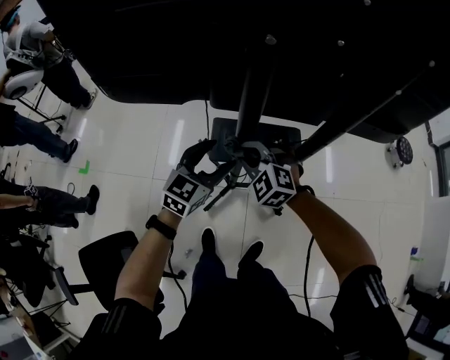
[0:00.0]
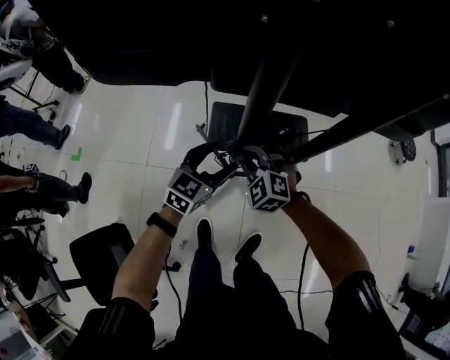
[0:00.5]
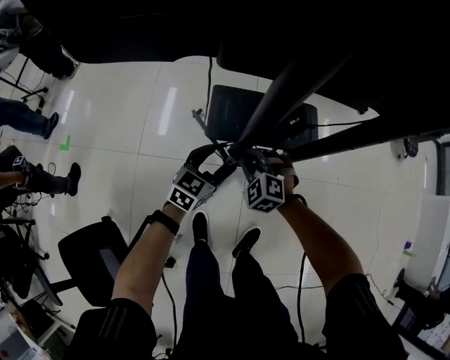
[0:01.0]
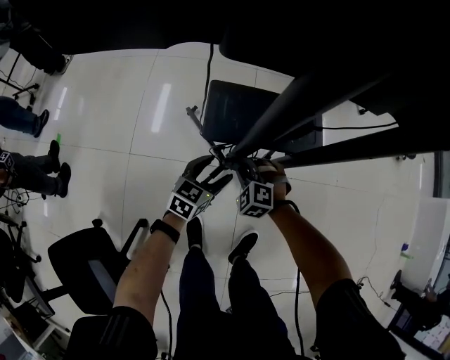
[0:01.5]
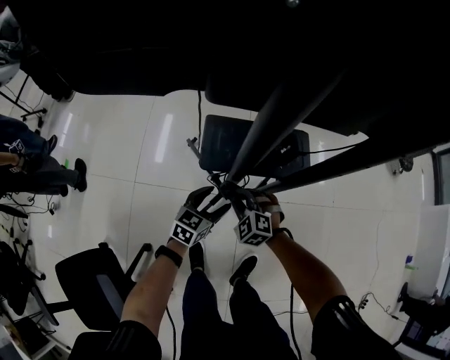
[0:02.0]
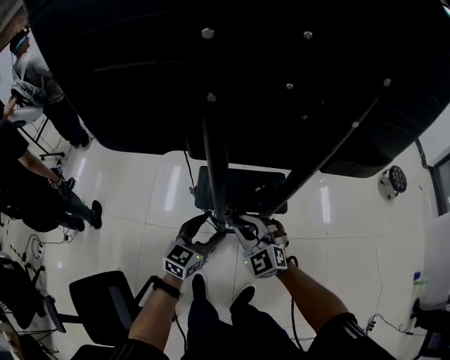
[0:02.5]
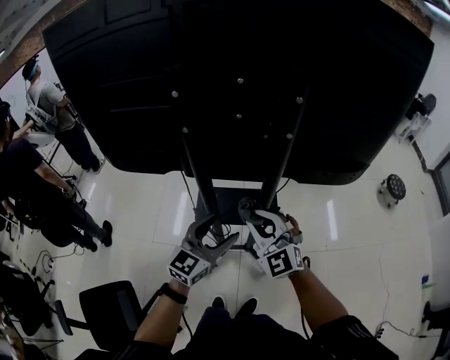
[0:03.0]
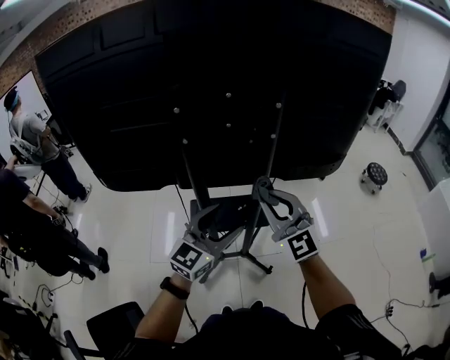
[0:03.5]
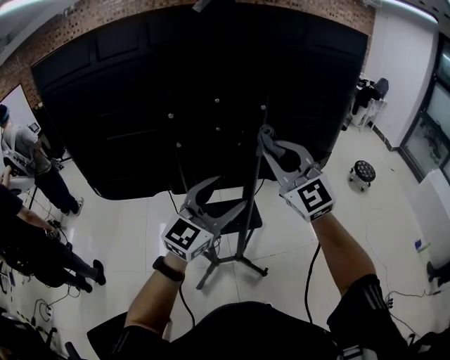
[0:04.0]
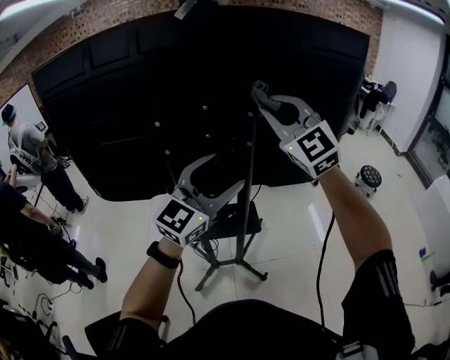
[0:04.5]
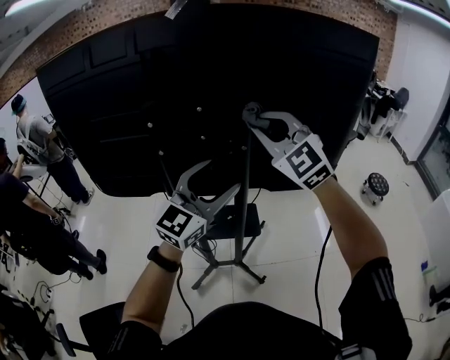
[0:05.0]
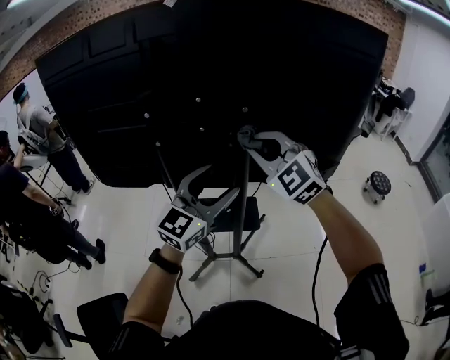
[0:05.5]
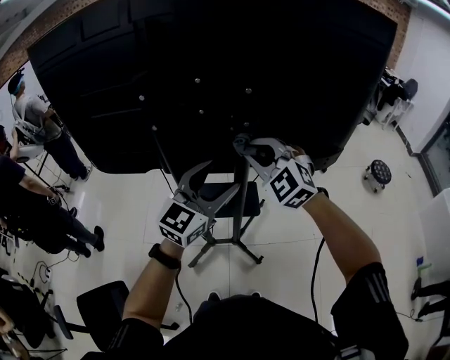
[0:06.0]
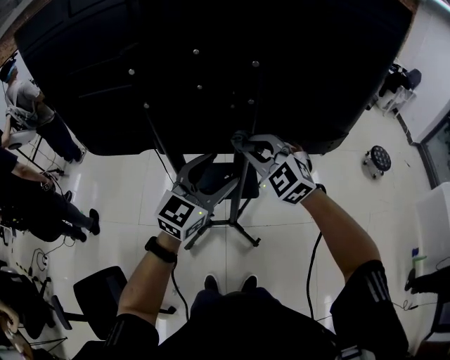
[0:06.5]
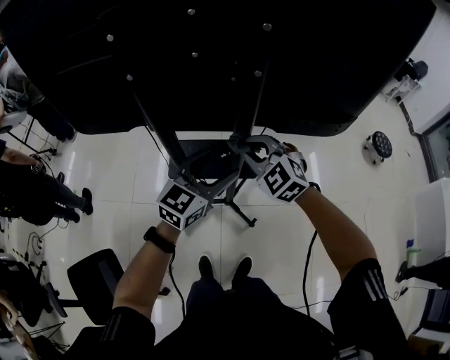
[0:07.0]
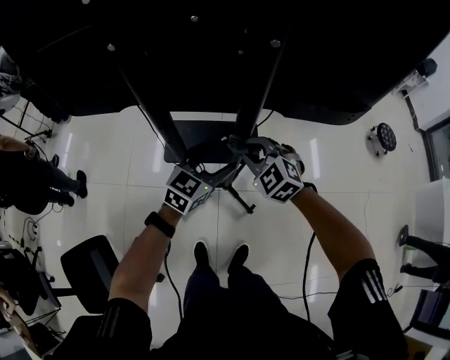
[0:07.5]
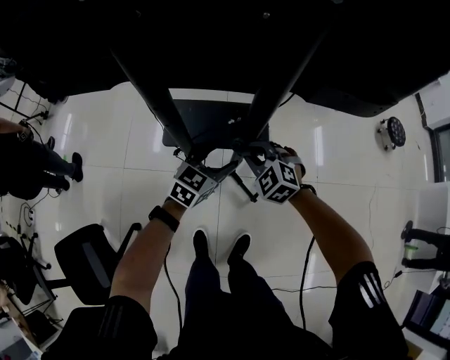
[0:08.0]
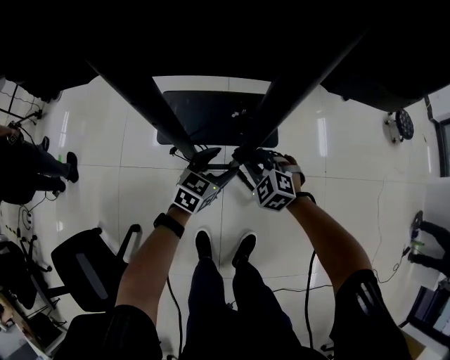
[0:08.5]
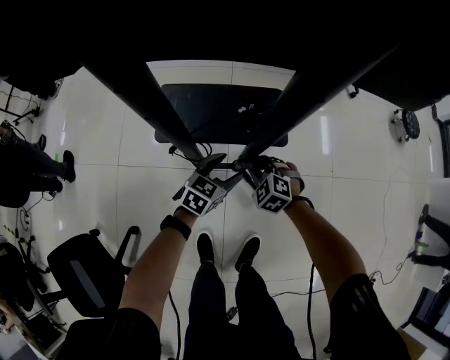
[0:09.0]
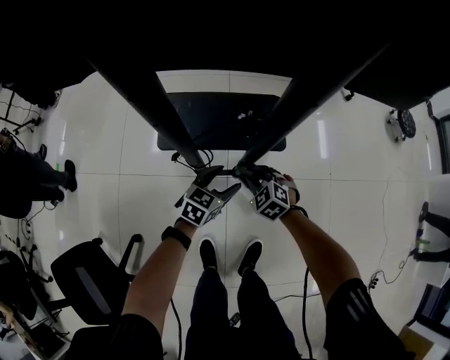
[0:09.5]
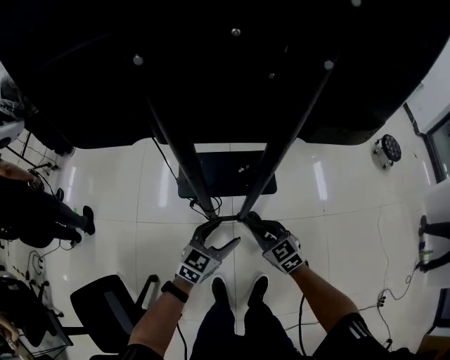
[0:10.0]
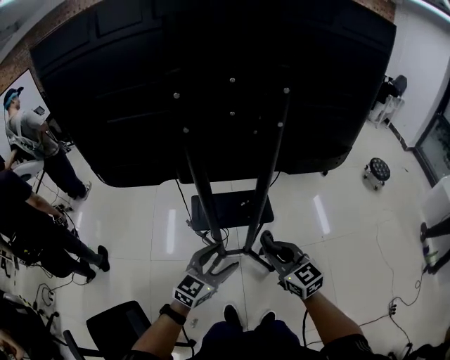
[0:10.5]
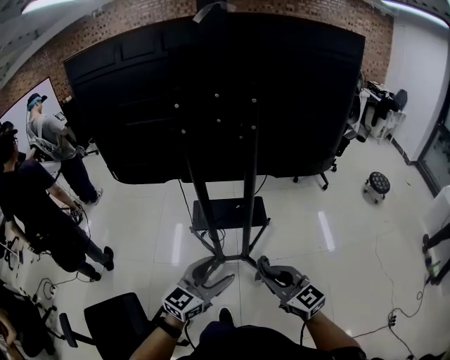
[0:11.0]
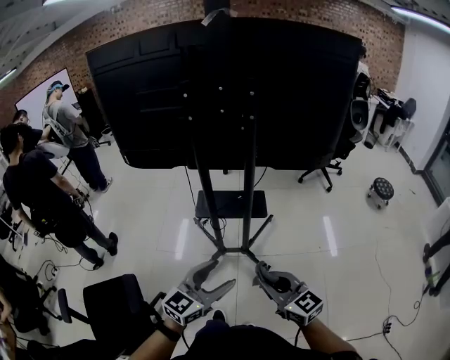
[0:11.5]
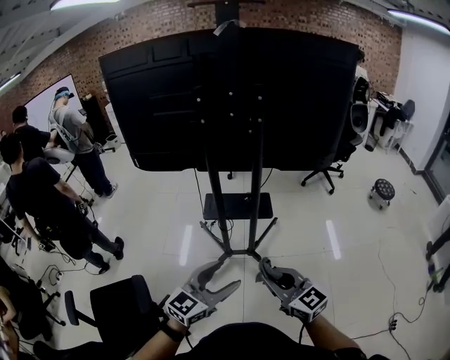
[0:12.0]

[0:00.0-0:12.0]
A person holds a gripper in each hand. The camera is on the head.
0:00.0 to 0:02.0: Both grippers move downward, approximately 30 cm. The left gripper swivels about 20 degrees.
0:02.0 to 0:04.0: Both grippers move upward, about 60 cm. The right gripper tilts its fingers approximately 50 degrees upward, while the left gripper tips its fingers upward by about 40 degrees.
0:04.0 to 0:06.0: The right gripper is displaced downward and forward by approximately 15 cm, and changes its angle by about 30 degrees, while the left gripper goes approximately 5 cm forward.
0:06.0 to 0:08.0: Both grippers travel together downward, some 40 cm. The left gripper changes its angle by approximately 30 degrees, while the right gripper changes its angle by about 30 degrees.
0:08.0 to 0:10.0: Both grippers move backward, about 10 cm. The right gripper reaches some 25 cm downward, then returns, and swivels roughly 30 degrees; the left gripper goes downward and returns, some 20 cm each way.
0:10.0 to 0:12.0: Both grippers move backward and upward, about 50 cm. The right gripper turns by about 30 degrees.

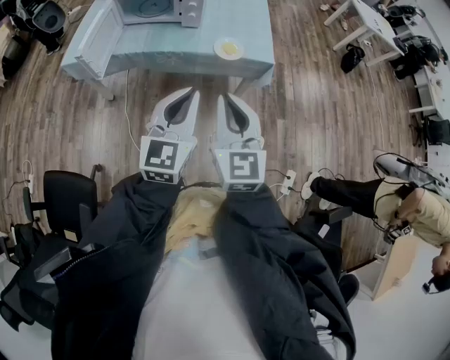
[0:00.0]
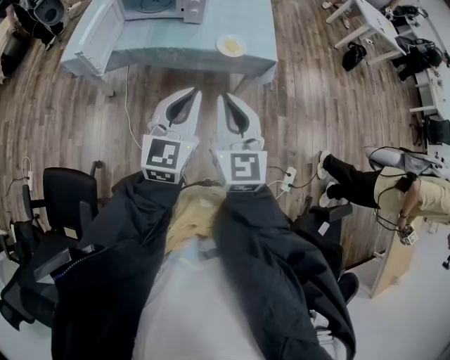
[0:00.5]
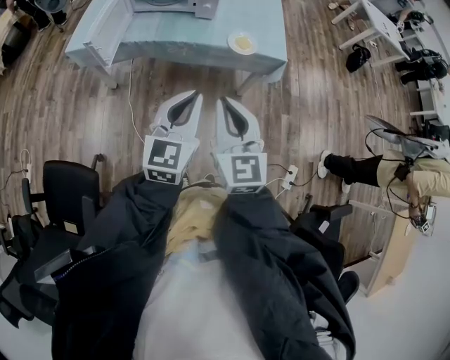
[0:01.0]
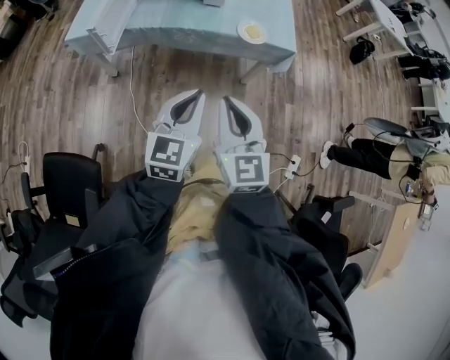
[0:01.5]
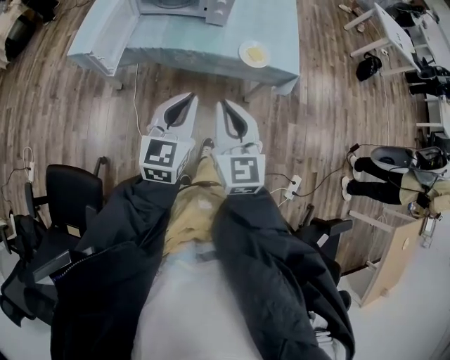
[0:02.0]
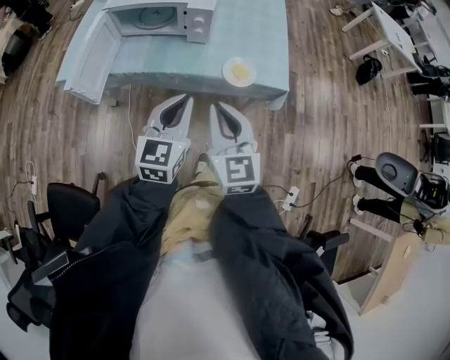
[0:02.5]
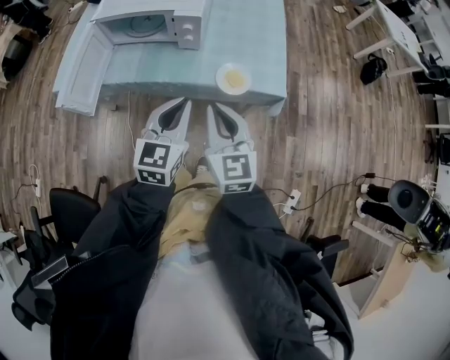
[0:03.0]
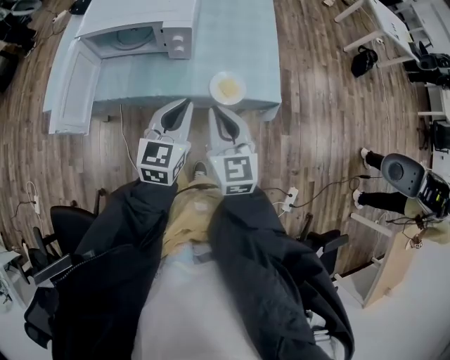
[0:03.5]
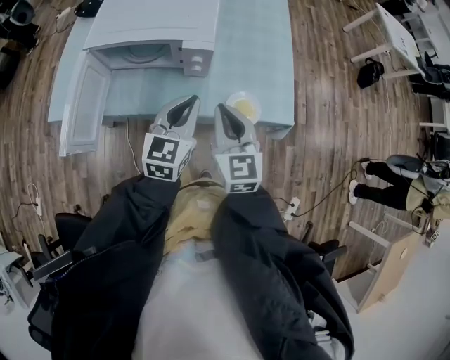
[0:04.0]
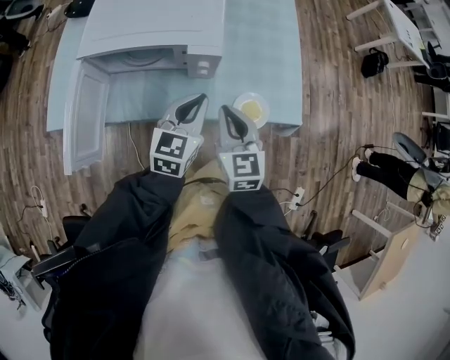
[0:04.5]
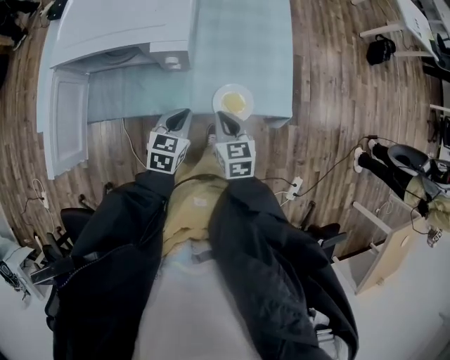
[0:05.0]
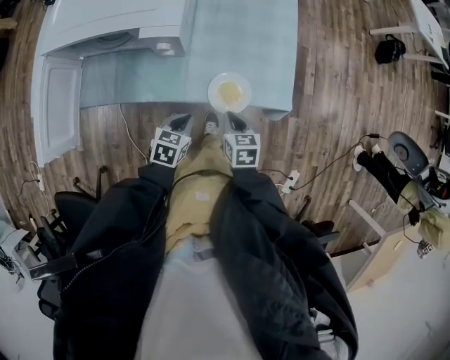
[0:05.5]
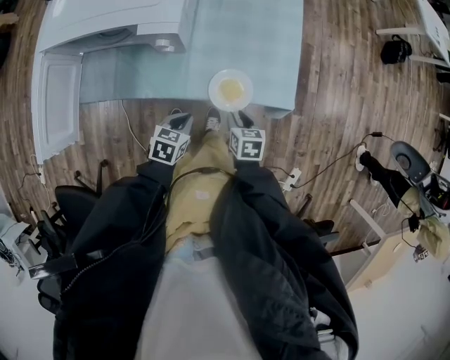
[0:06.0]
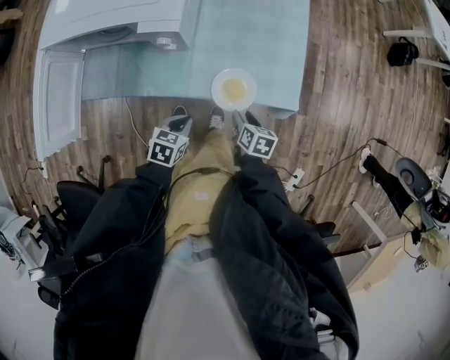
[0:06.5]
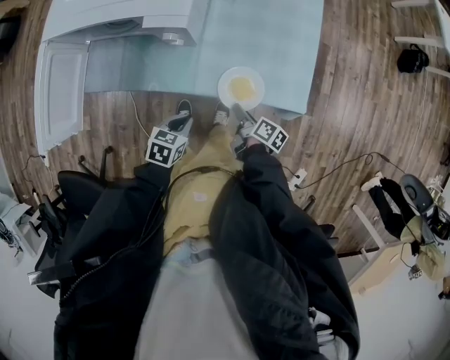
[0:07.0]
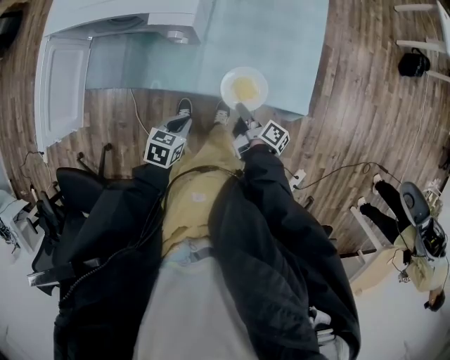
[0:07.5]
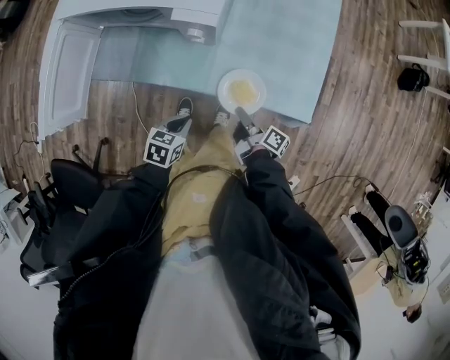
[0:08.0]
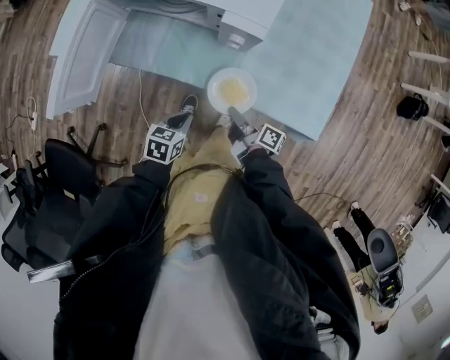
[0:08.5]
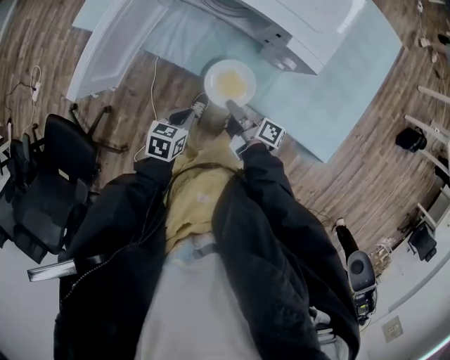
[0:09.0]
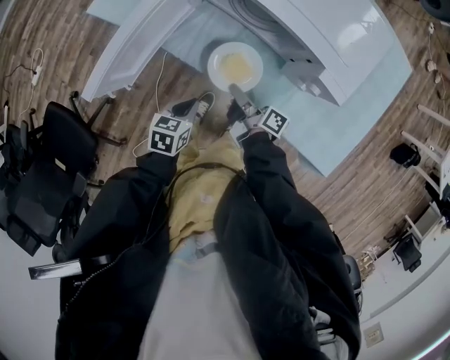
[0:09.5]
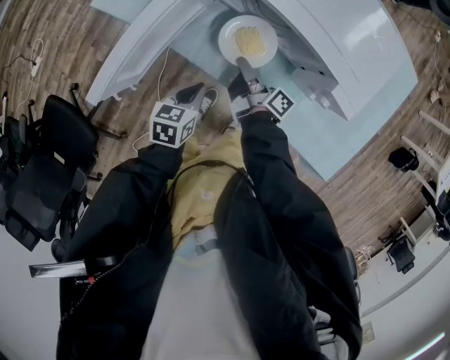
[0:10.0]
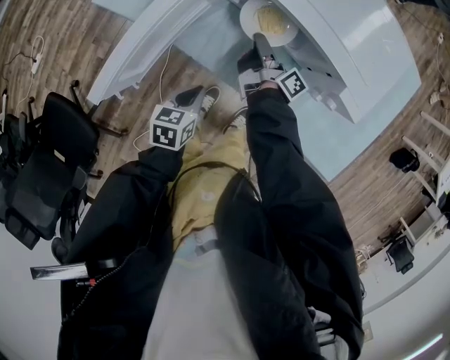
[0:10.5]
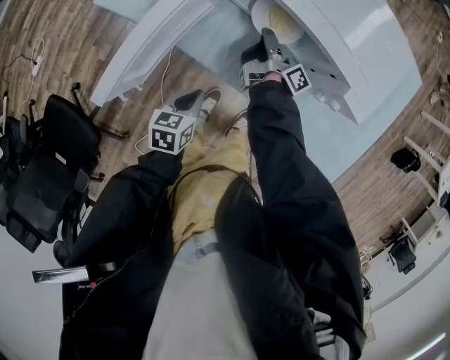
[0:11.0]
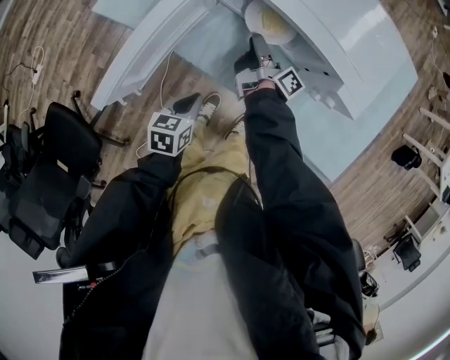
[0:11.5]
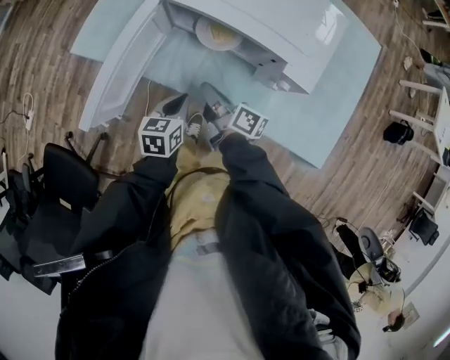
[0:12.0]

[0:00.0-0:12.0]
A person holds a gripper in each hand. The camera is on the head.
0:00.0 to 0:02.0: Both grippers travel together to the left, forward and downward, approximately 15 cm.
0:02.0 to 0:04.0: The grippers both shift forward by about 30 cm.
0:04.0 to 0:06.0: The right gripper moves downward and to the right, roughly 35 cm, tips its fingers downward by roughly 40 degrees, and opens, while the left gripper travels downward by about 25 cm, and angles its fingers downward, by approximately 40 degrees.
0:06.0 to 0:08.0: The right gripper angles its fingers upward, by approximately 30 degrees, and closes its fingers; the left gripper is displaced to the left by about 5 cm.
0:08.0 to 0:10.0: The right gripper changes place by some 40 cm; the left gripper moves some 25 cm, and swivels roughly 30 degrees.
0:10.0 to 0:12.0: The right gripper moves upward, approximately 10 cm, moves roughly 10 cm forward and comes back, and opens and closes again; the left gripper moves roughly 5 cm.

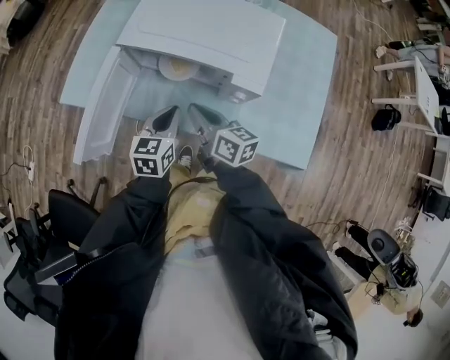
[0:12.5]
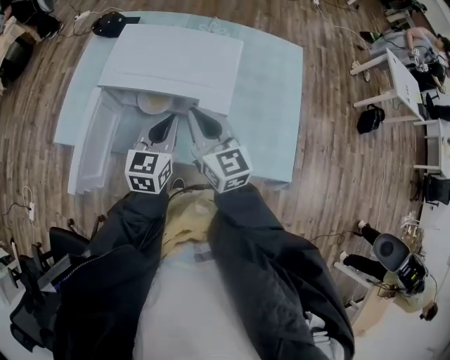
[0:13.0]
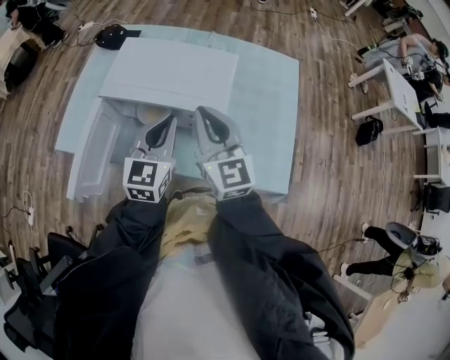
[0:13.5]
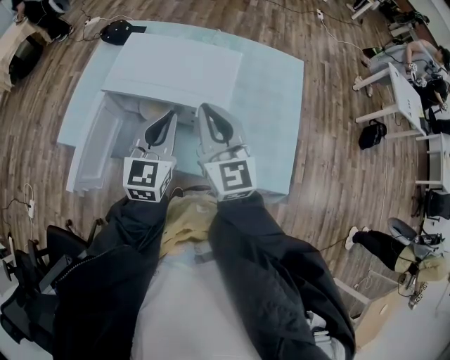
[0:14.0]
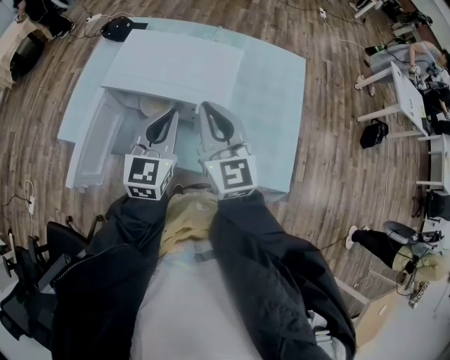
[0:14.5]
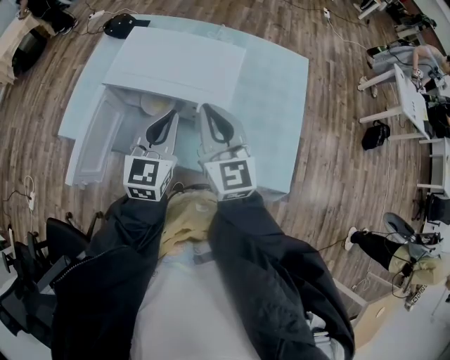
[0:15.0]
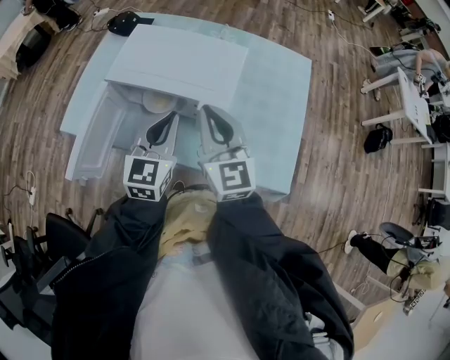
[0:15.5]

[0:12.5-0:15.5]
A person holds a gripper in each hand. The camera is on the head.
0:12.5 to 0:14.0: Both grippers move upward and to the right, about 20 cm. The right gripper twists roughly 50 degrees counterclockwise, seen from behind, while the left gripper turns by about 30 degrees.
0:14.0 to 0:15.5: The grippers make only small movements.
